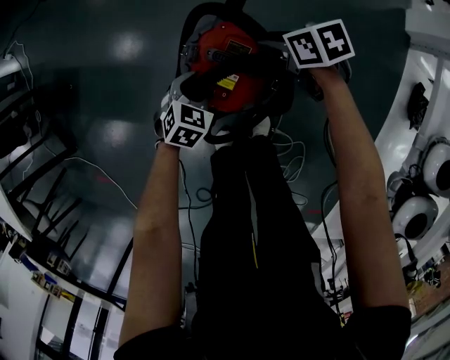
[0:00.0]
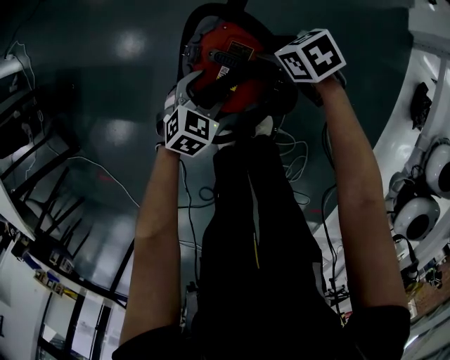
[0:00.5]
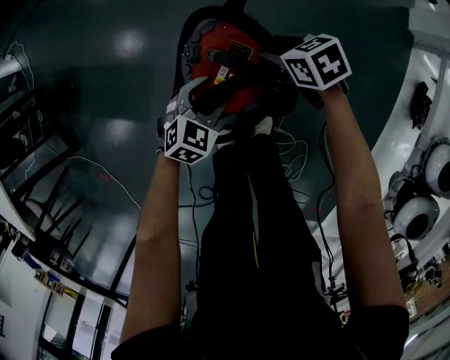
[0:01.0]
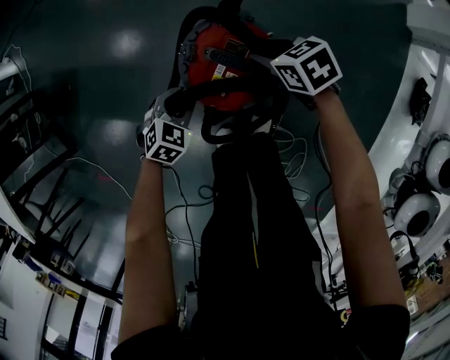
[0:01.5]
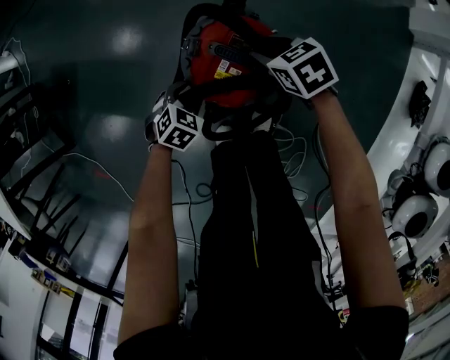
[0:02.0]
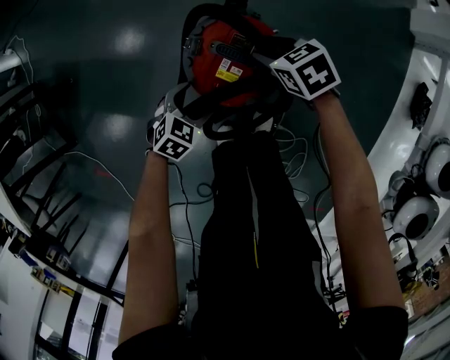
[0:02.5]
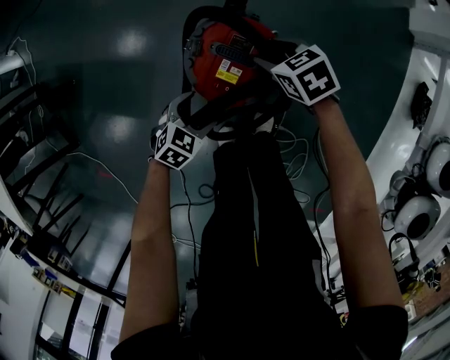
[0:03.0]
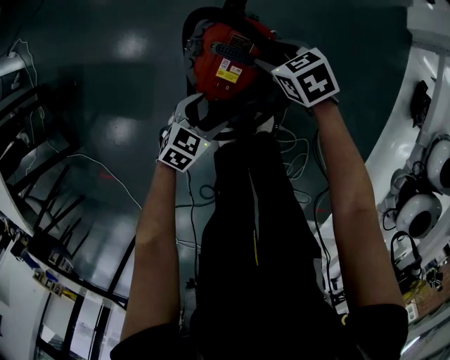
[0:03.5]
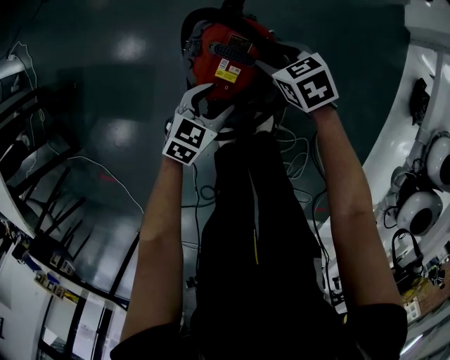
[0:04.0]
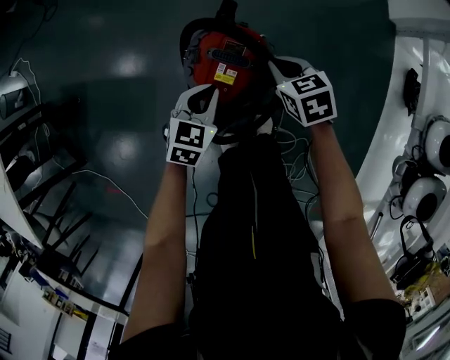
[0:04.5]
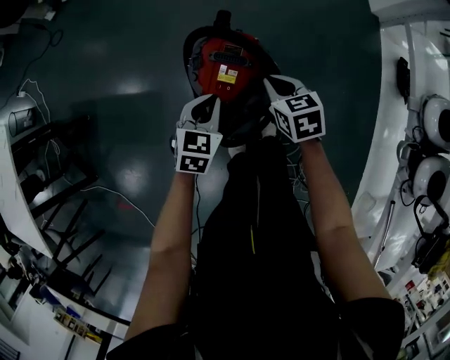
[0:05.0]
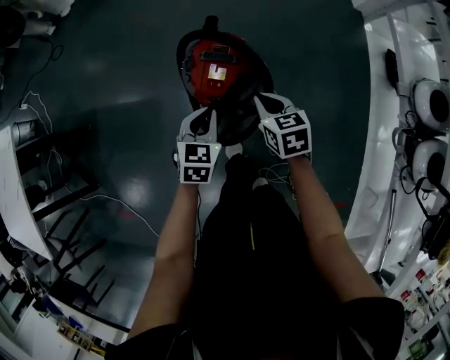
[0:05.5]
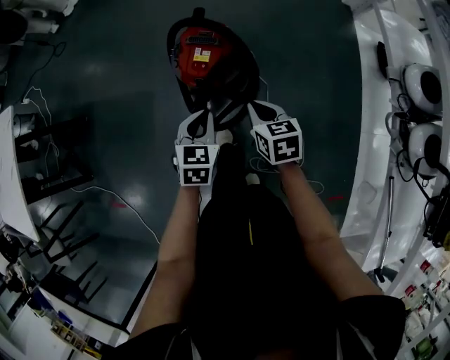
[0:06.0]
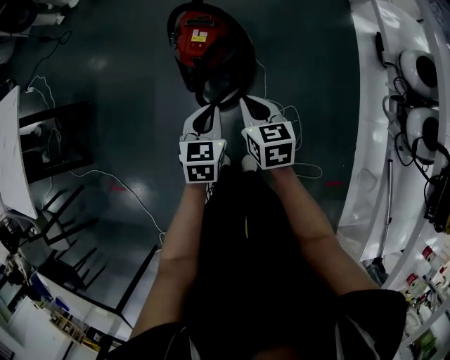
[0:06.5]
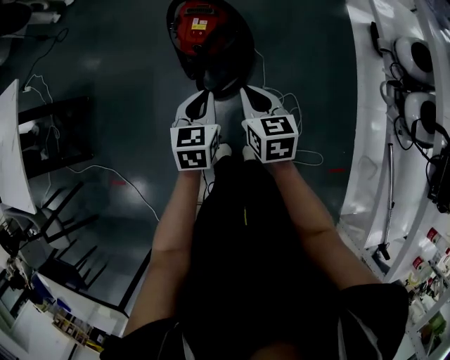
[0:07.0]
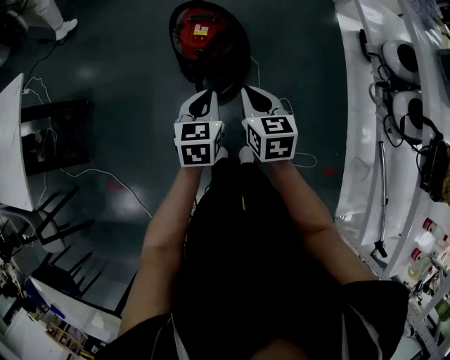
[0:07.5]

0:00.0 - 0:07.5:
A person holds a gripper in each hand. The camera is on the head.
0:00.0 - 0:02.0: The left gripper moves to the left, roughly 5 cm.
0:02.0 - 0:04.0: The left gripper heads upward and to the right, covering some 10 cm, and turns by roughly 30 degrees.
0:04.0 - 0:05.5: The left gripper goes approximately 15 cm upward and backward, and closes up, while the right gripper travels backward and upward by roughly 25 cm, turns by some 30 degrees, and closes.
0:05.5 - 0:07.5: The grippers both shift backward and upward by roughly 30 cm.

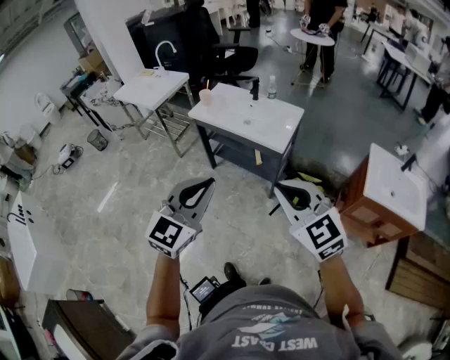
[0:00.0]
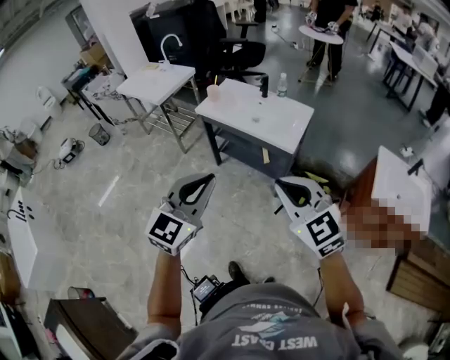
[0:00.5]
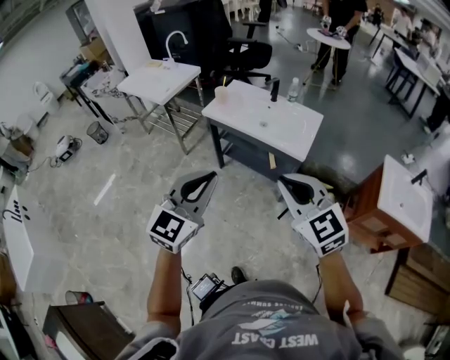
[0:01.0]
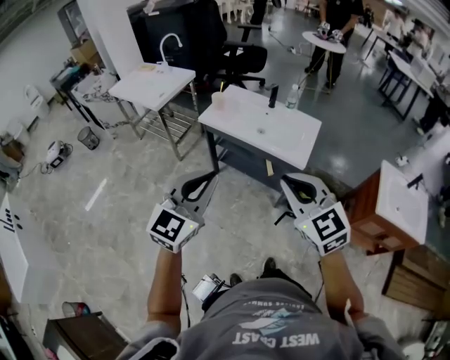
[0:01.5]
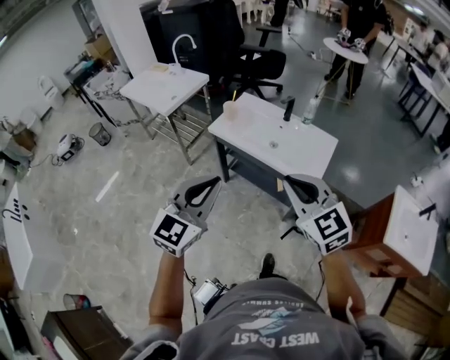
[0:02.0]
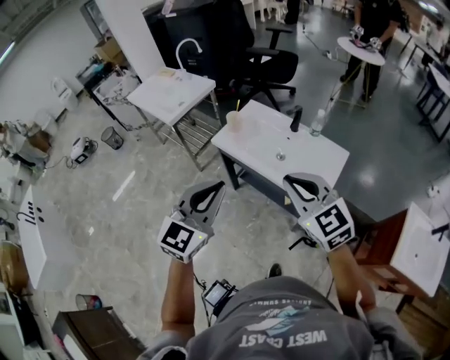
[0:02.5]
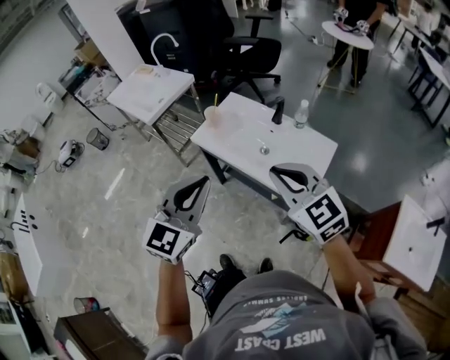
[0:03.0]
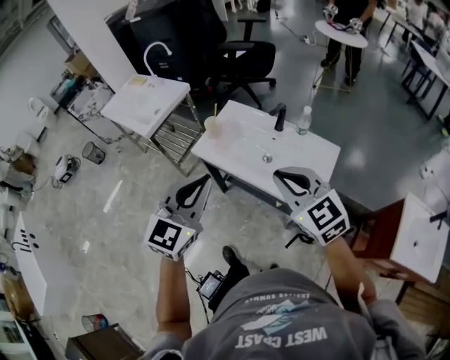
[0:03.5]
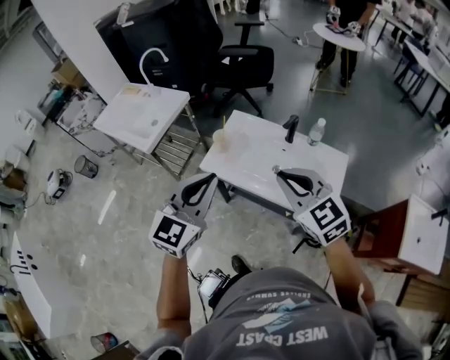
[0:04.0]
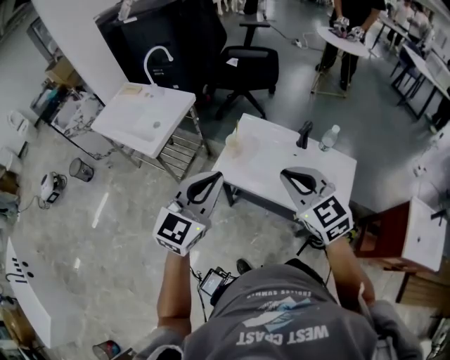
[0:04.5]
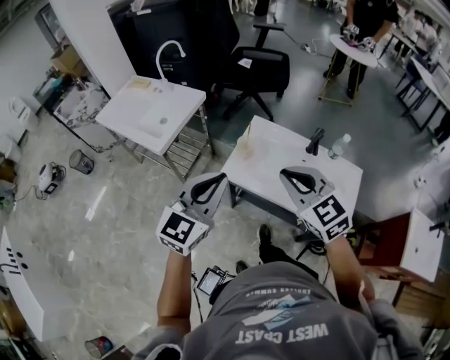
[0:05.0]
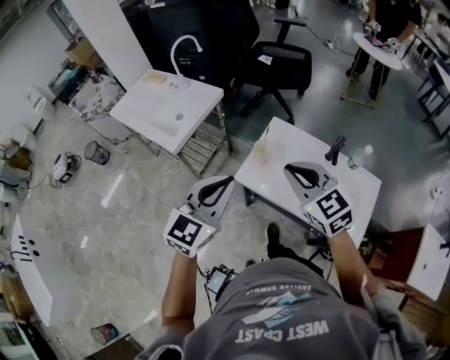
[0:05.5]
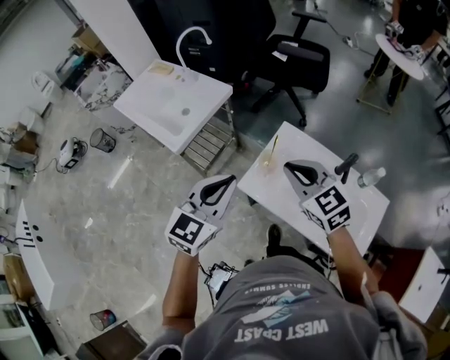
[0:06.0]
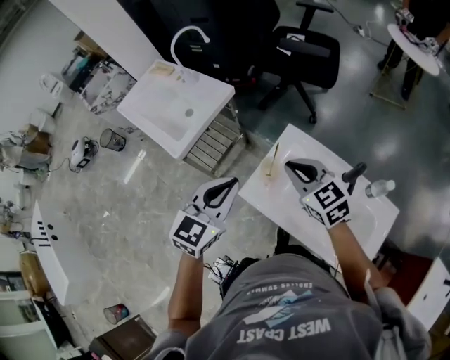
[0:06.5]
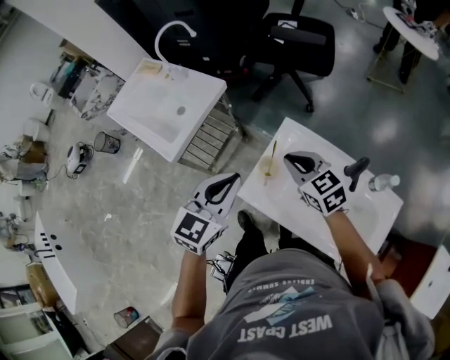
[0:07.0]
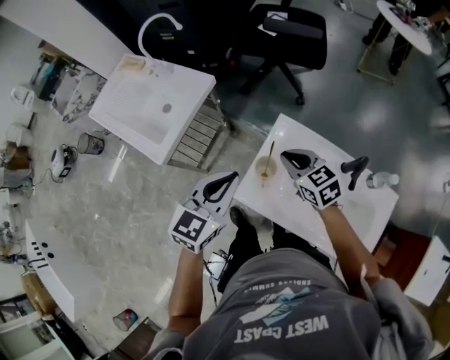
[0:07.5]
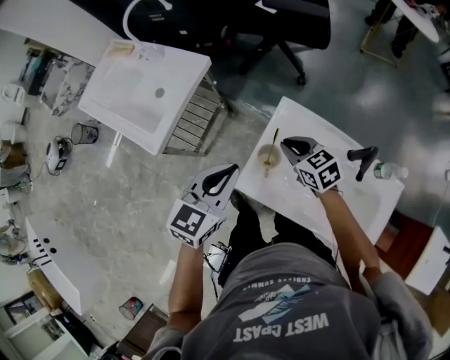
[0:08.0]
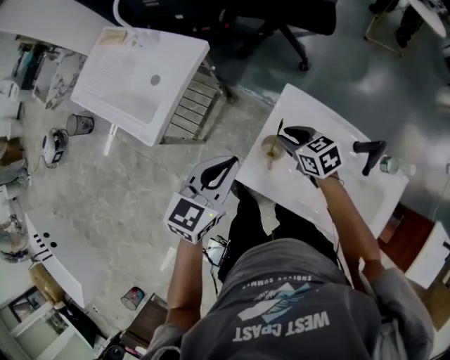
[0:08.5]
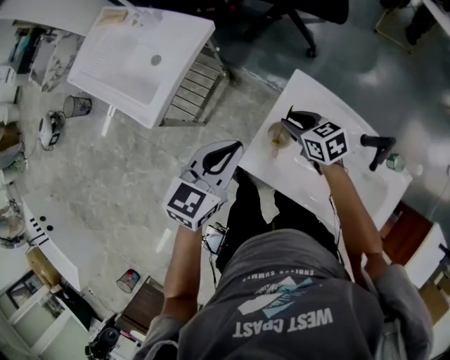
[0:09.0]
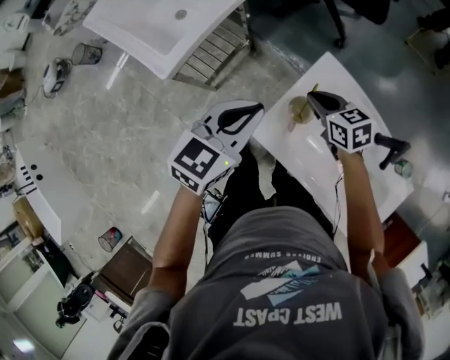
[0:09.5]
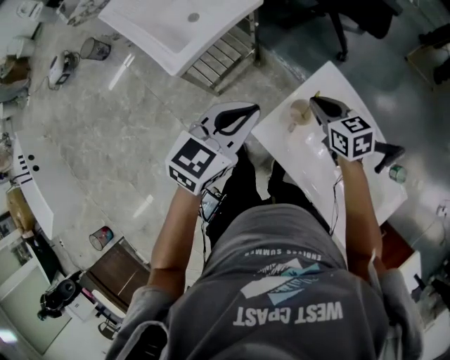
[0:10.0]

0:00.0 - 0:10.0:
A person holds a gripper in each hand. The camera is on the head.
0:00.0 - 0:02.0: The two grippers go roughly 30 cm forward and to the left.
0:02.0 - 0:04.0: Both grippers travel together forward, approximately 25 cm.
0:04.0 - 0:06.0: Both grippers travel together forward and to the left, about 25 cm.
0:06.0 - 0:08.0: The left gripper goes some 15 cm forward and downward. The right gripper travels downward and forward by some 25 cm, and swivels some 30 degrees.
0:08.0 - 0:10.0: The right gripper opens, then closes once more.

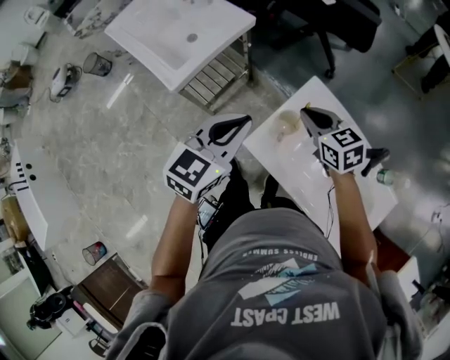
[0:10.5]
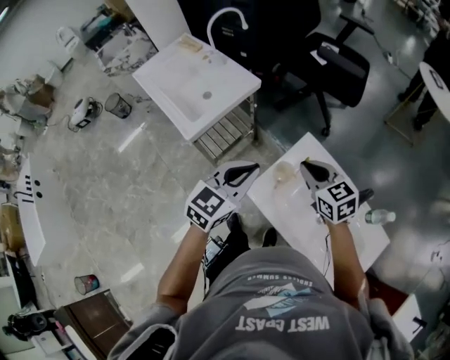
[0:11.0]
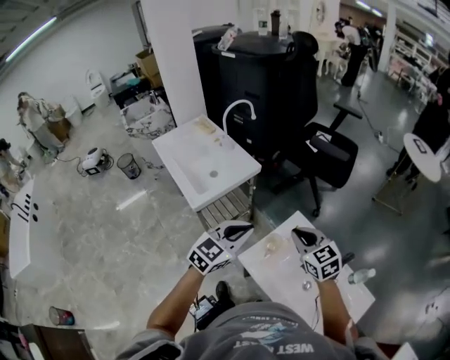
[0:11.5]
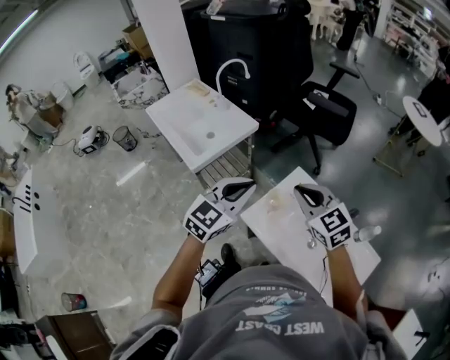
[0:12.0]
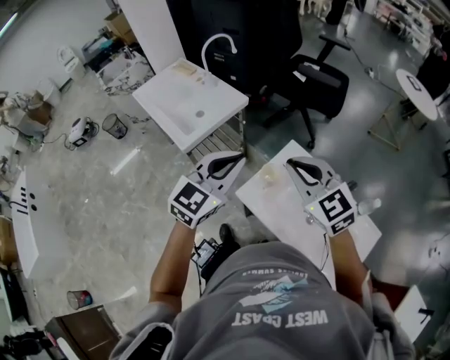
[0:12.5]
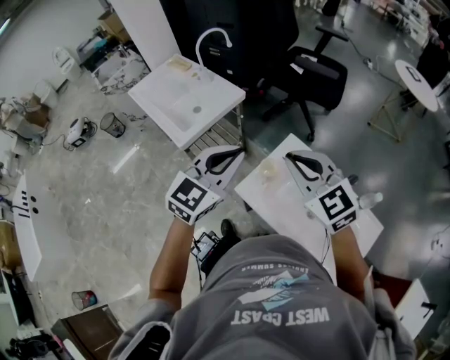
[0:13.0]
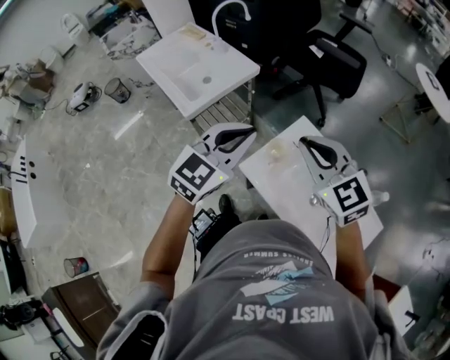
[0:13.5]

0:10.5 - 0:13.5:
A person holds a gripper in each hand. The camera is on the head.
0:10.5 - 0:12.0: The left gripper moves upward, some 10 cm; the right gripper shifts roughly 20 cm upward and backward, and rotates some 30 degrees.
0:12.0 - 0:13.5: The grippers stay close to where they were, moving slightly.

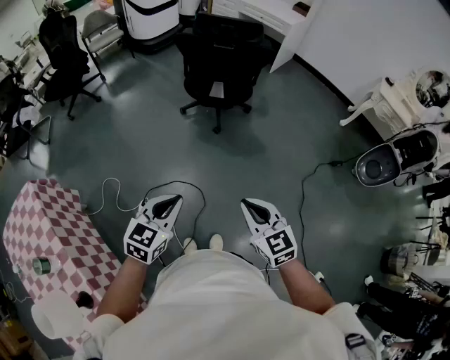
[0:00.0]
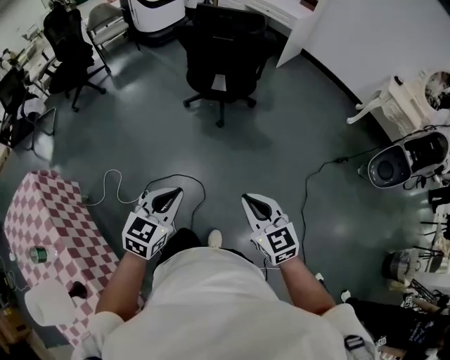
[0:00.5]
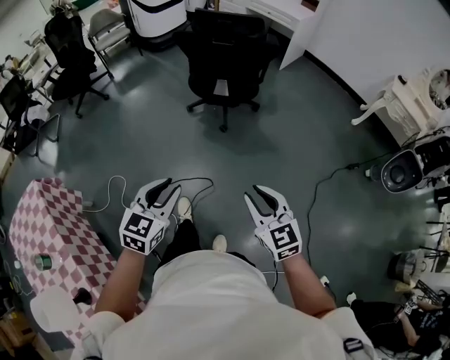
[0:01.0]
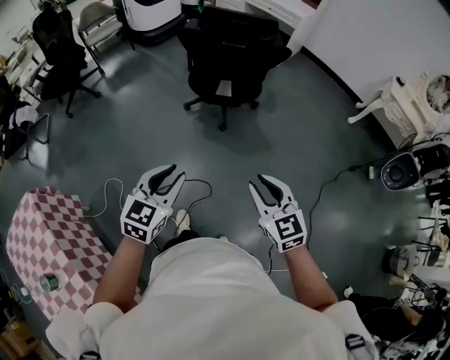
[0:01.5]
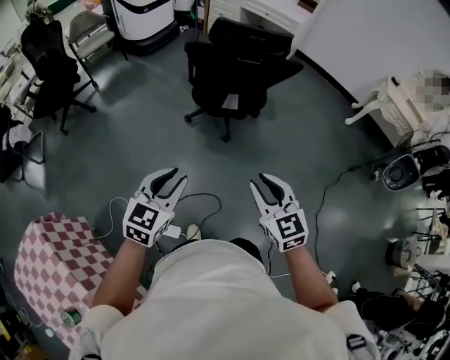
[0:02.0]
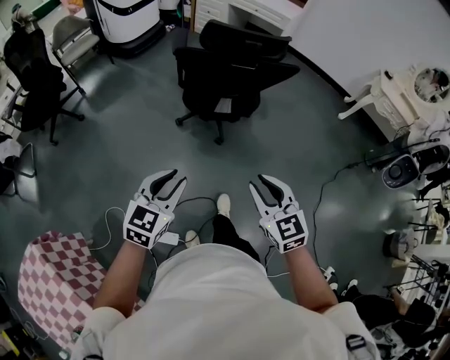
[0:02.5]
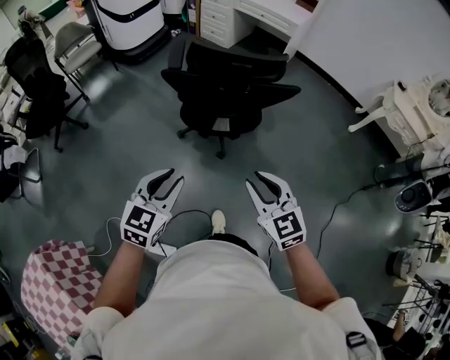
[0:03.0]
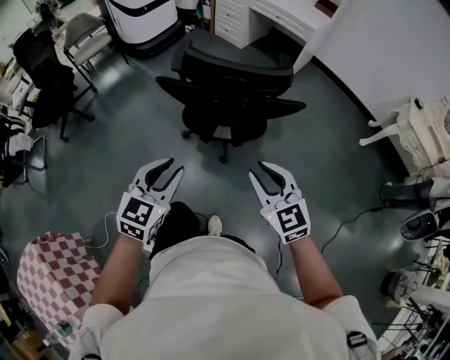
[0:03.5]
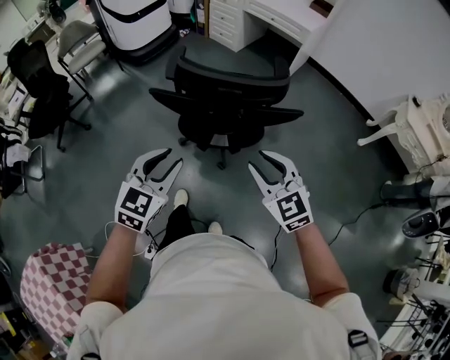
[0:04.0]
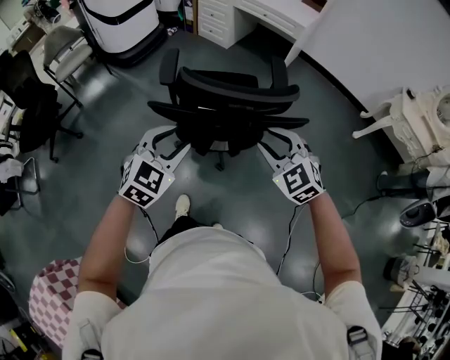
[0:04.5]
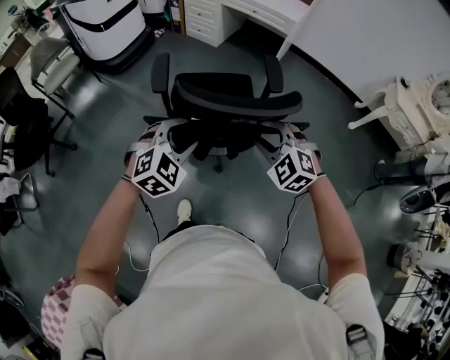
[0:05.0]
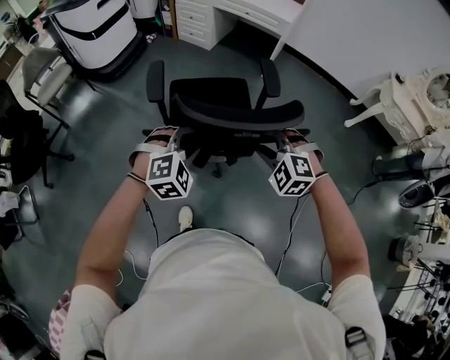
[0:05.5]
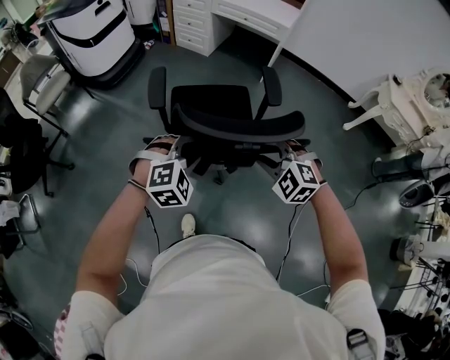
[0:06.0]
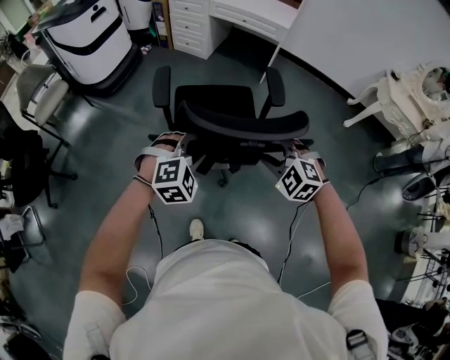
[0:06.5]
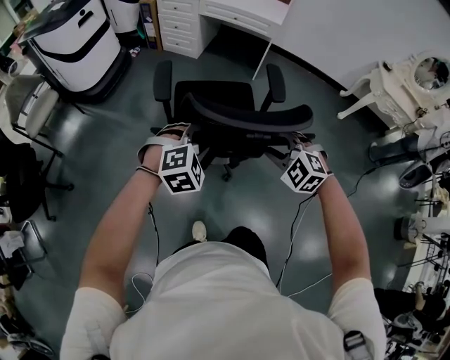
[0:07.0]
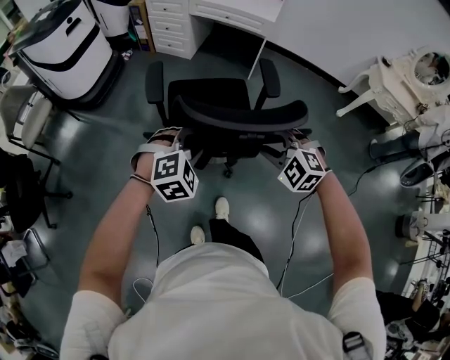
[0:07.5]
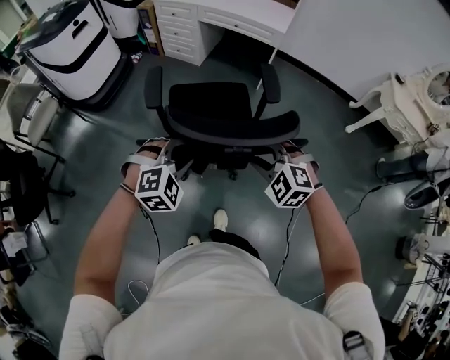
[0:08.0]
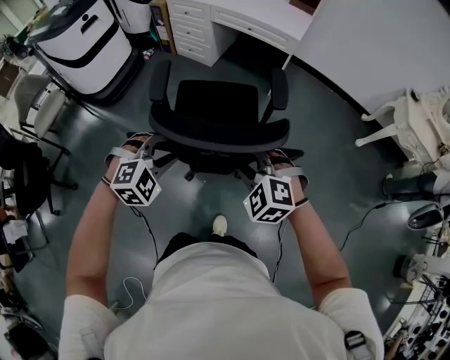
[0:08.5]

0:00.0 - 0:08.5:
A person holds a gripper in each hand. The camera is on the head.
0:00.0 - 0:02.0: The two grippers go approximately 25 cm forward and to the left. The left gripper opens up.
0:02.0 - 0:04.0: The two grippers go roughly 35 cm forward.
0:04.0 - 0:06.5: Both grippers travel together forward, about 20 cm. The left gripper twists roughly 50 degrees clockwise, seen from behind. The right gripper rotates about 30 degrees.
0:06.5 - 0:08.5: Both grippers travel together forward, approximately 20 cm.
